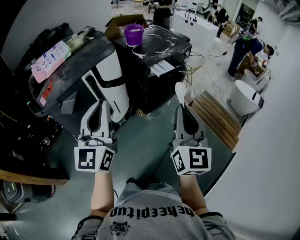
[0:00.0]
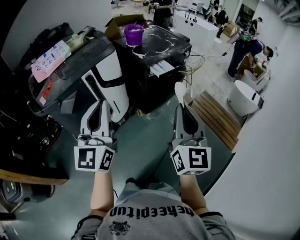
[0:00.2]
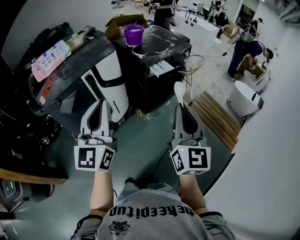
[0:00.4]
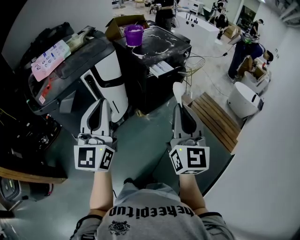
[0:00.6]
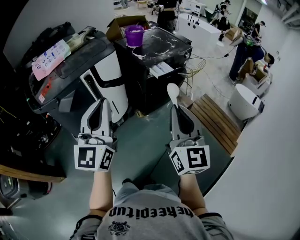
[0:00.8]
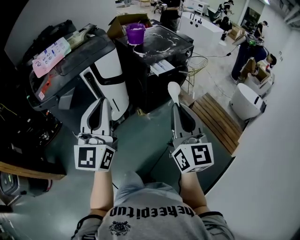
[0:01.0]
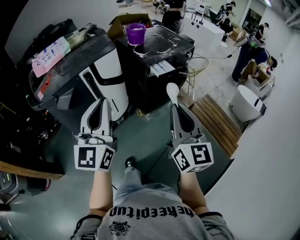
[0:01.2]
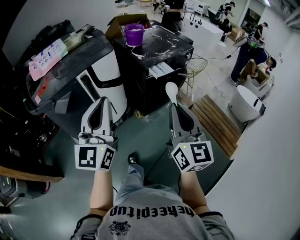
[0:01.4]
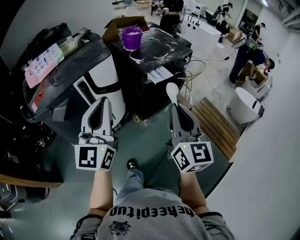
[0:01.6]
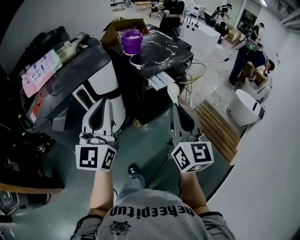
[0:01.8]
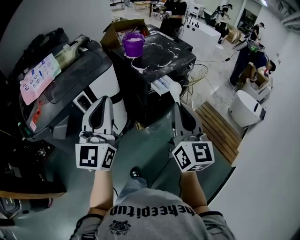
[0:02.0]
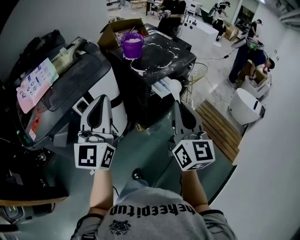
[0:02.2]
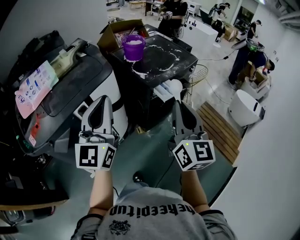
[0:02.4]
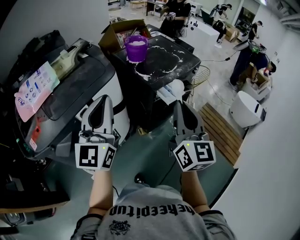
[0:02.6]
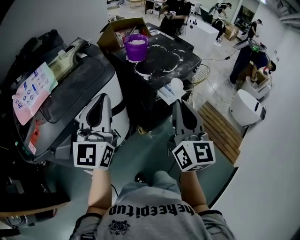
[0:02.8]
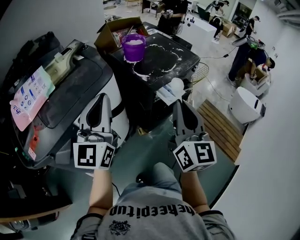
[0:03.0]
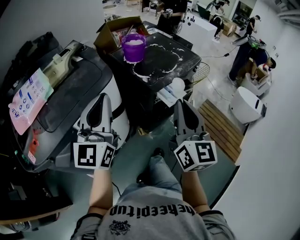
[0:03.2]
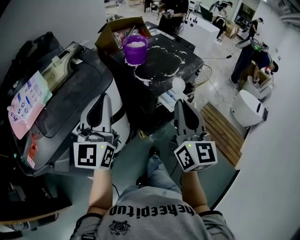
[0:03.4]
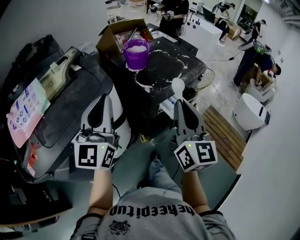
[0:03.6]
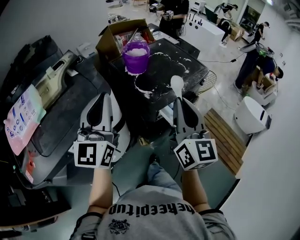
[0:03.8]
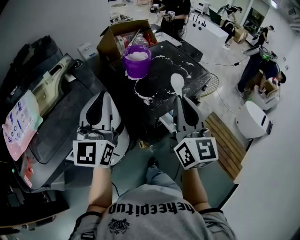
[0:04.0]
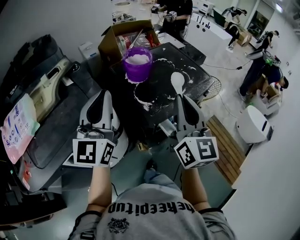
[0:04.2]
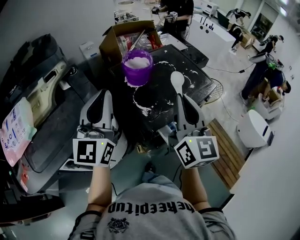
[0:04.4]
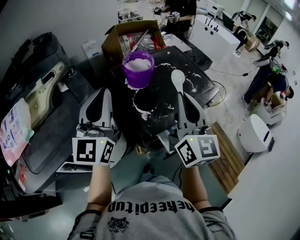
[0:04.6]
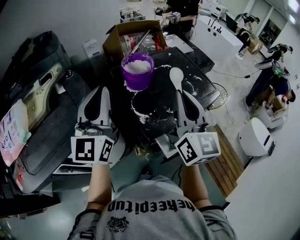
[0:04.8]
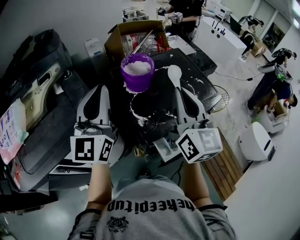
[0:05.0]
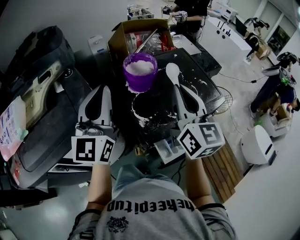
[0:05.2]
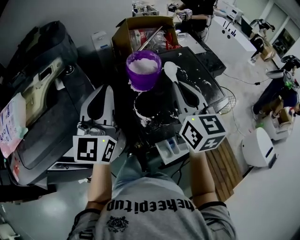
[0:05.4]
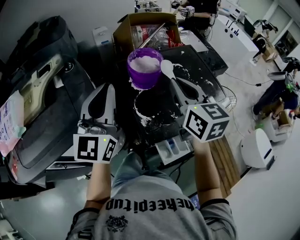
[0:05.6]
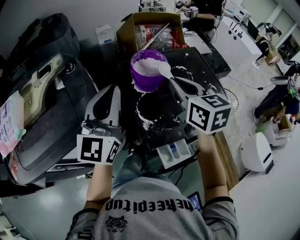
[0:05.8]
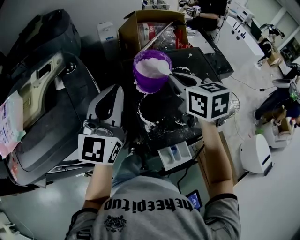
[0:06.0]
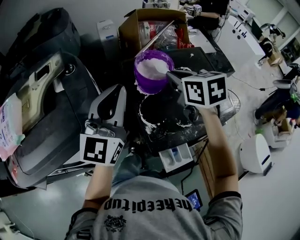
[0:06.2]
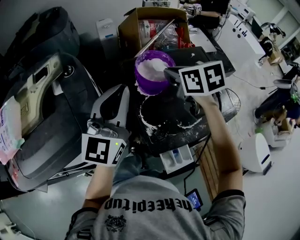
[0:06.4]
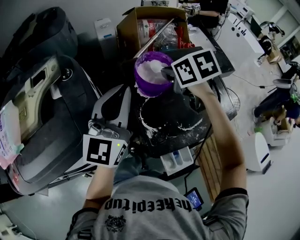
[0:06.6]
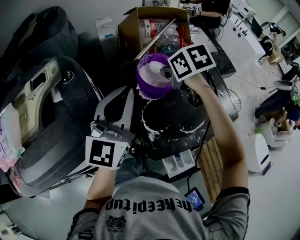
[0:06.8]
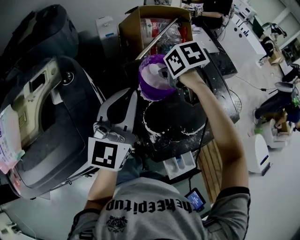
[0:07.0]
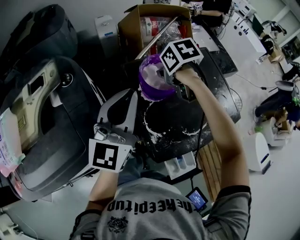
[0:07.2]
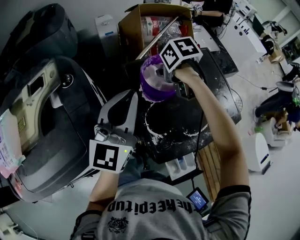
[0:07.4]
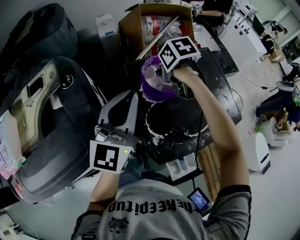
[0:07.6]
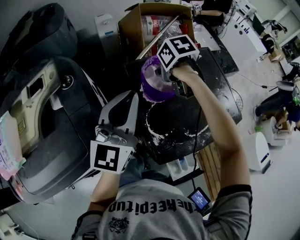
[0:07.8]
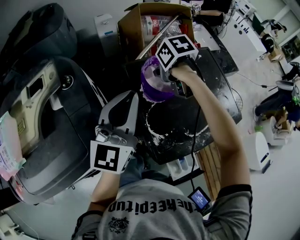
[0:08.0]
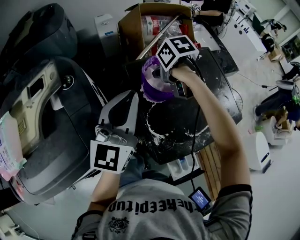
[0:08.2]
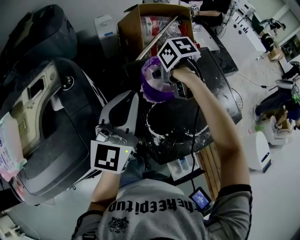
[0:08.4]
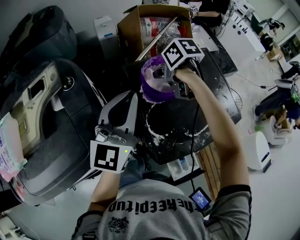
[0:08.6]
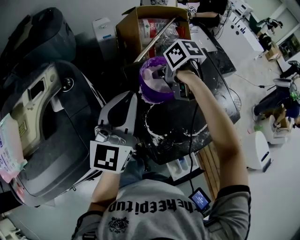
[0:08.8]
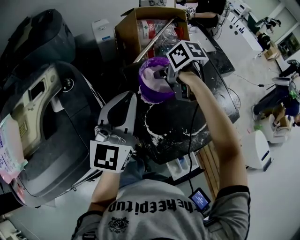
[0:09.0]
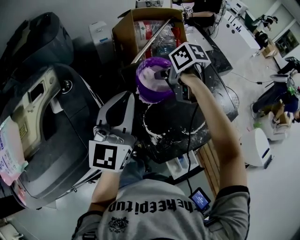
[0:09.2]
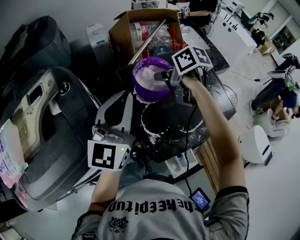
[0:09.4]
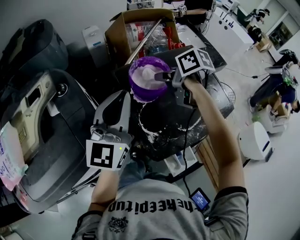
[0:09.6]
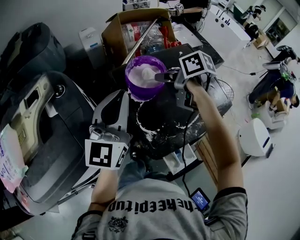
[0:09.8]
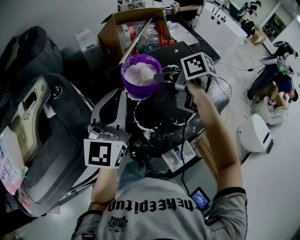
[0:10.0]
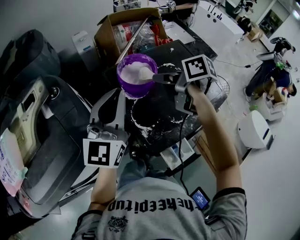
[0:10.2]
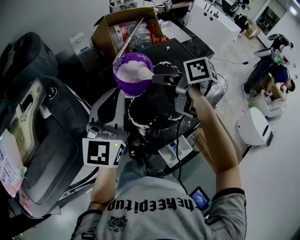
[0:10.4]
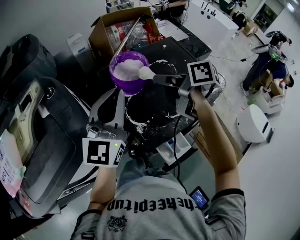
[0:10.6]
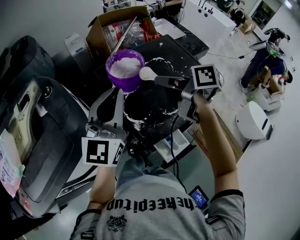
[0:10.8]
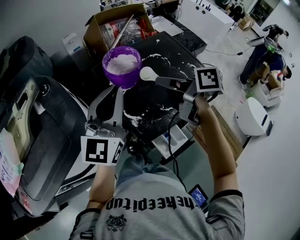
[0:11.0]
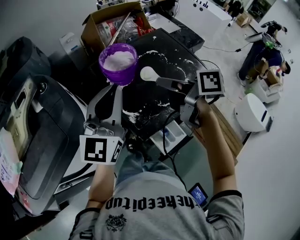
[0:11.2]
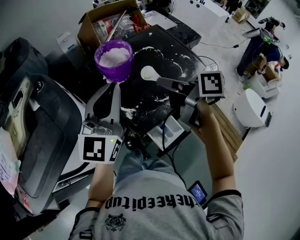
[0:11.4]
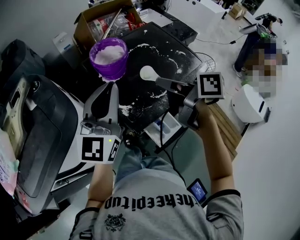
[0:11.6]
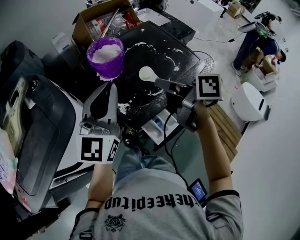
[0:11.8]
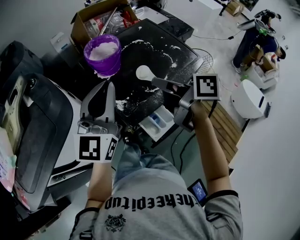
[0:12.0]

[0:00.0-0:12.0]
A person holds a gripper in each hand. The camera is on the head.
0:00.0 to 0:01.6: Both grippers travel together forward, roughly 10 cm.
0:01.6 to 0:03.0: The right gripper heads forward, covering approximately 20 cm. Meanwhile the left gripper travels forward and to the left by approximately 25 cm.
0:03.0 to 0:04.4: Both grippers travel together forward, about 30 cm.
0:04.4 to 0:06.0: The right gripper travels forward by some 25 cm, and tips its fingers downward by approximately 40 degrees, while the left gripper shifts approximately 15 cm forward.
0:06.0 to 0:07.6: The left gripper goes approximately 5 cm forward, while the right gripper goes approximately 20 cm forward and downward, and tips its fingers downward by approximately 40 degrees.
0:07.6 to 0:09.0: There are only small adjustments of the grippers.
0:09.0 to 0:10.4: The right gripper shifts roughly 15 cm backward, upward and to the right, and changes its angle by roughly 30 degrees. Meanwhile the left gripper heads backward, covering about 5 cm.
0:10.4 to 0:12.0: The left gripper heads backward and to the right, covering about 10 cm. The right gripper shifts about 20 cm backward.

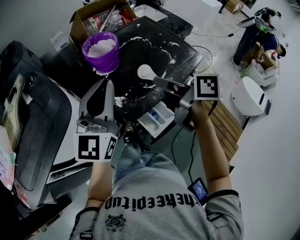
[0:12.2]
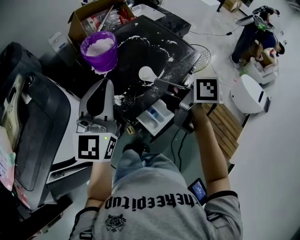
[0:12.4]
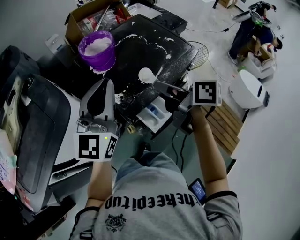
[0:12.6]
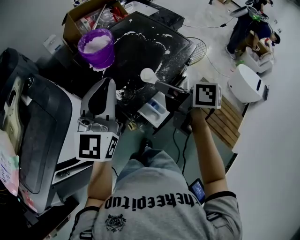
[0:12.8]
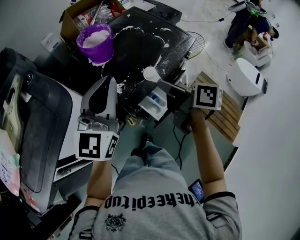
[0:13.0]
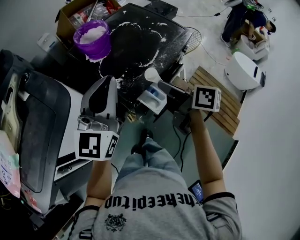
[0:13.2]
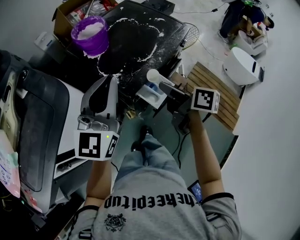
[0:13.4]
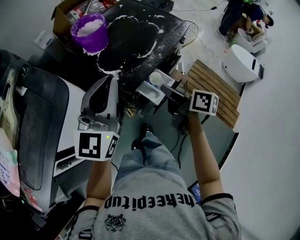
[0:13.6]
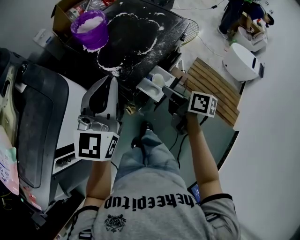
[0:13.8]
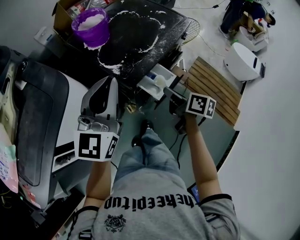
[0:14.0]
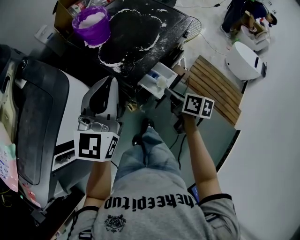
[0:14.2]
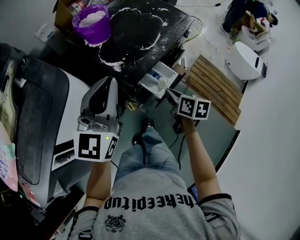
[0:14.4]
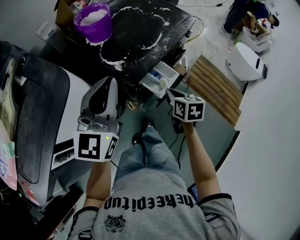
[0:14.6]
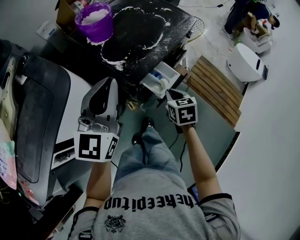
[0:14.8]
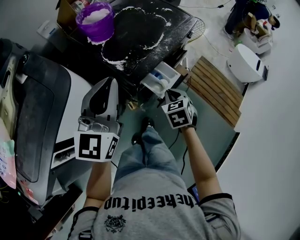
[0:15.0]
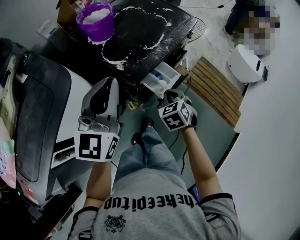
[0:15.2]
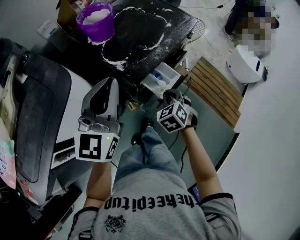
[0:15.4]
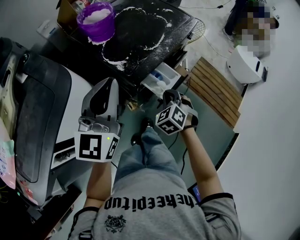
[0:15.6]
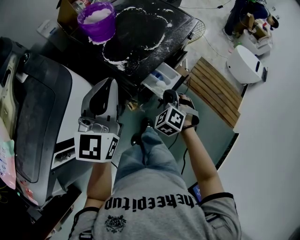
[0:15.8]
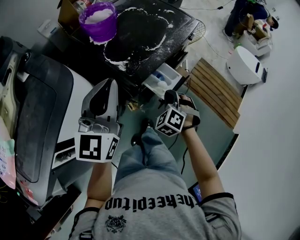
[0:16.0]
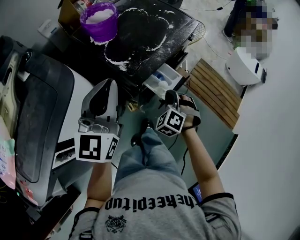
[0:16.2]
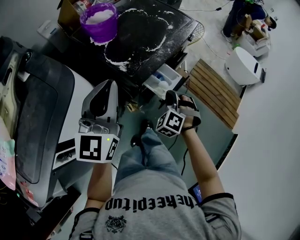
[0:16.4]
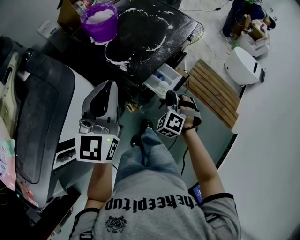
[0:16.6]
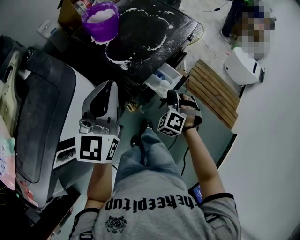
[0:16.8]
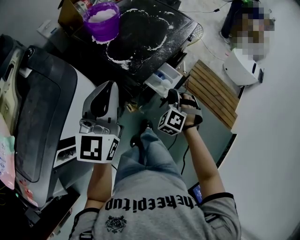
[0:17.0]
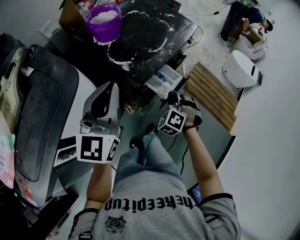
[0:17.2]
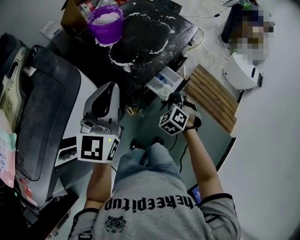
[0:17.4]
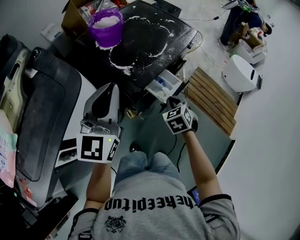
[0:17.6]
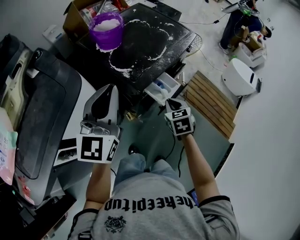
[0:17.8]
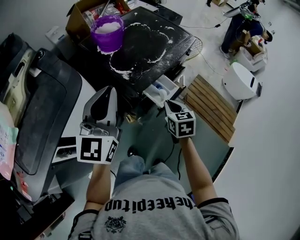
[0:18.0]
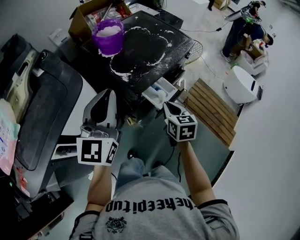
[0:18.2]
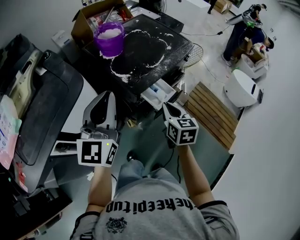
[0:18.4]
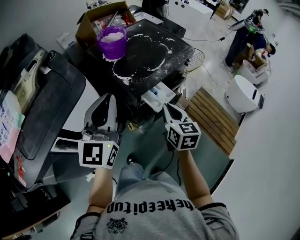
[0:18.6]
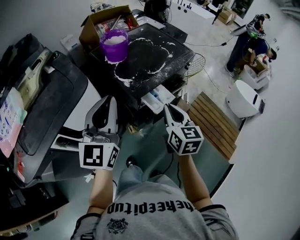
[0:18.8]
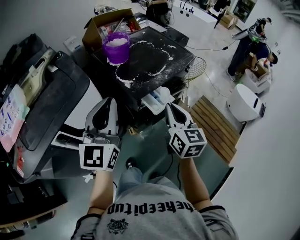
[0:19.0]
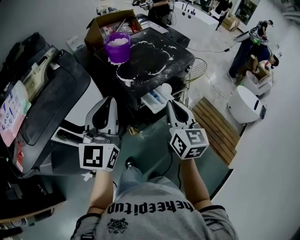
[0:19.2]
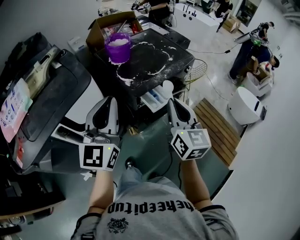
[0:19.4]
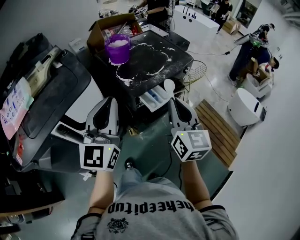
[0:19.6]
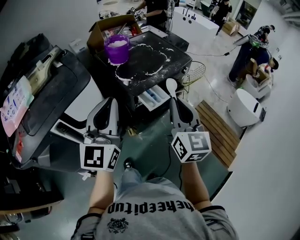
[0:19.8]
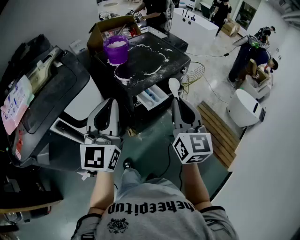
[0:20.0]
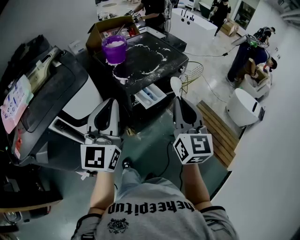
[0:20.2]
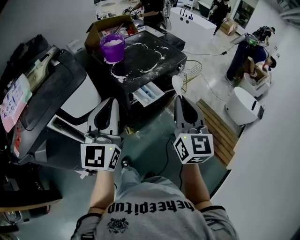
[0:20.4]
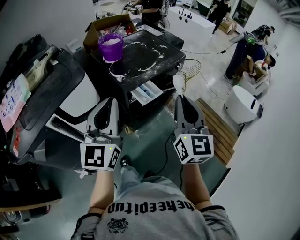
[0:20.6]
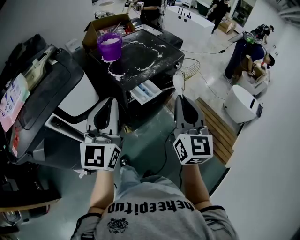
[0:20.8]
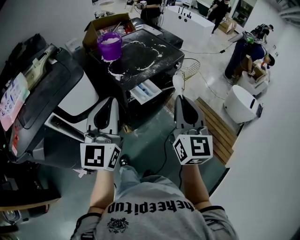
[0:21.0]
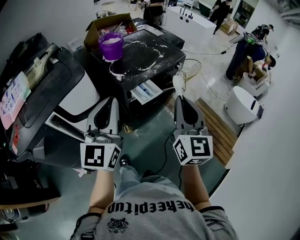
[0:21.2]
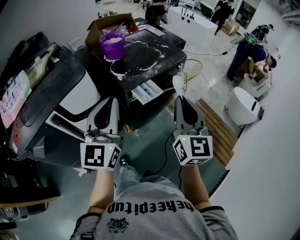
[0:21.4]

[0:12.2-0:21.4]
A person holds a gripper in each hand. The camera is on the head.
0:12.2 to 0:13.8: The left gripper travels backward by roughly 10 cm; the right gripper shifts some 20 cm backward and downward, and rotates approximately 30 degrees.
0:13.8 to 0:15.2: The right gripper heads downward, covering some 10 cm, and twists roughly 70 degrees counterclockwise, seen from behind.
0:15.2 to 0:16.8: The right gripper turns by approximately 40 degrees.
0:16.8 to 0:18.4: The left gripper is displaced backward by approximately 5 cm. The right gripper goes some 10 cm upward, and twists roughly 70 degrees clockwise, seen from behind.
0:18.4 to 0:19.8: The left gripper heads backward and upward, covering roughly 15 cm. The right gripper goes roughly 20 cm upward and backward, and changes its angle by roughly 30 degrees.
0:19.8 to 0:21.4: The left gripper ends up some 5 cm from where it was. The right gripper is displaced to the right by roughly 5 cm.

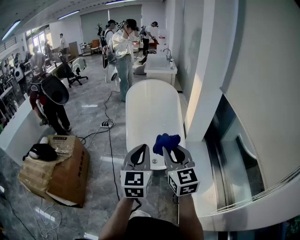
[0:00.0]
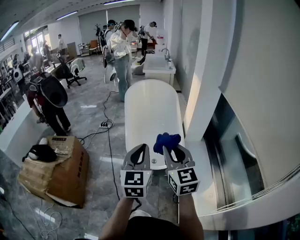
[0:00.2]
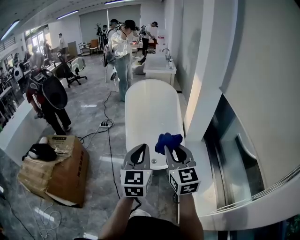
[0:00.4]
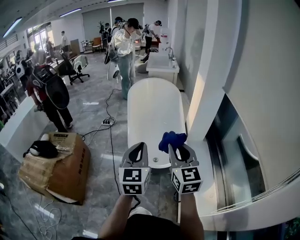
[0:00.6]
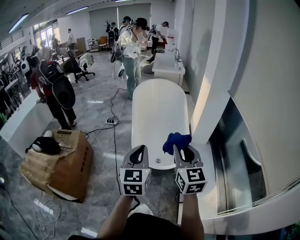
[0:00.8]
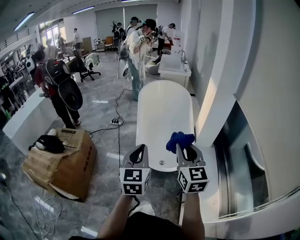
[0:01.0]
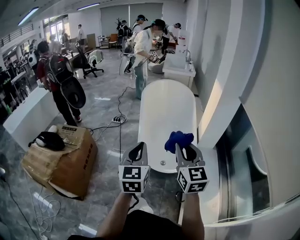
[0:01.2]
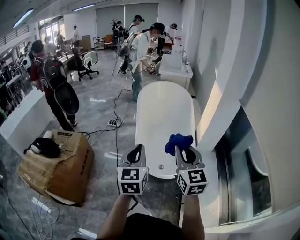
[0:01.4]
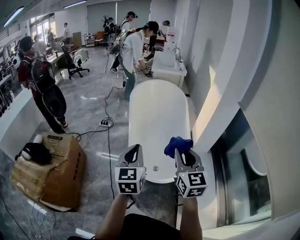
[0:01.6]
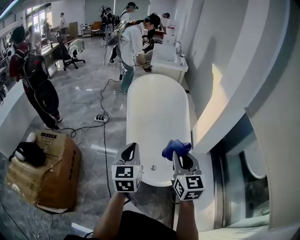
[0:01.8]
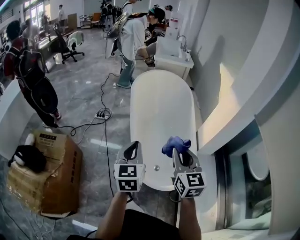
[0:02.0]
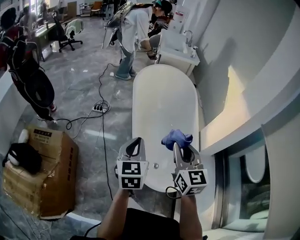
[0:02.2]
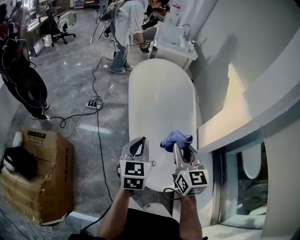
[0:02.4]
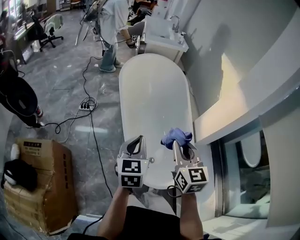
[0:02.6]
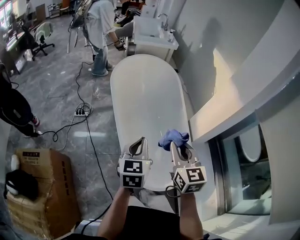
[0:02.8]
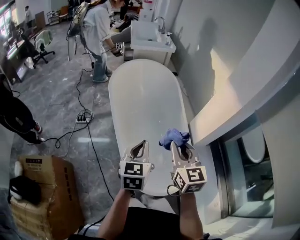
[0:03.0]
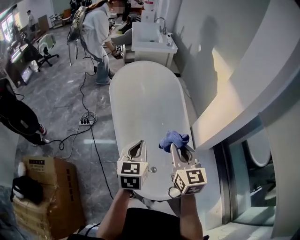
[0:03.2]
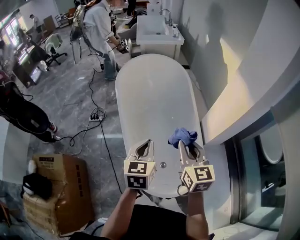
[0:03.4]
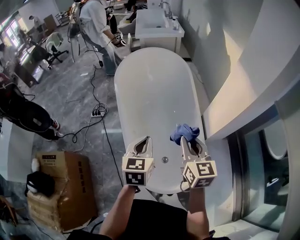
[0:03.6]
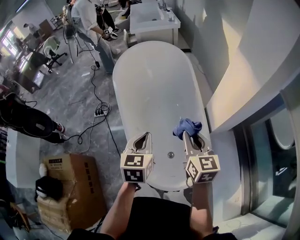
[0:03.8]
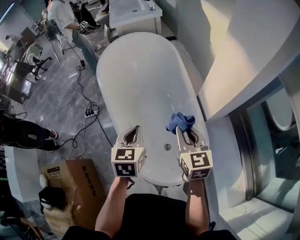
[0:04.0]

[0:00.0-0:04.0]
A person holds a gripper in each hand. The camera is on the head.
0:00.0 to 0:01.4: The left gripper shifts some 10 cm forward and to the left. The right gripper is displaced forward by some 10 cm.
0:01.4 to 0:02.6: Both grippers travel together forward, about 35 cm. The left gripper swivels about 20 degrees.
0:02.6 to 0:04.0: The right gripper is displaced to the right, downward and forward by some 25 cm. The left gripper goes about 20 cm to the right, forward and downward, and changes its angle by roughly 20 degrees.
